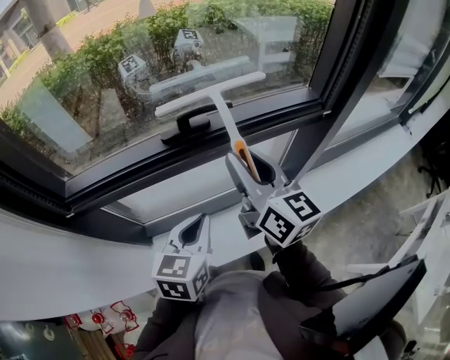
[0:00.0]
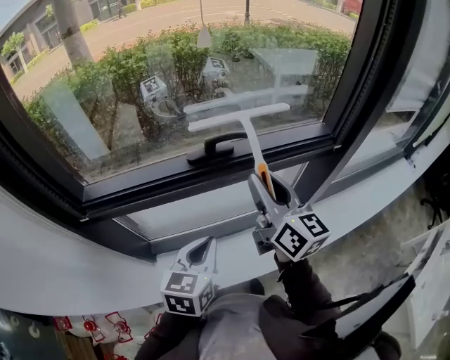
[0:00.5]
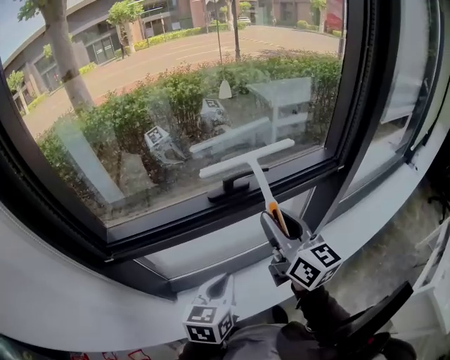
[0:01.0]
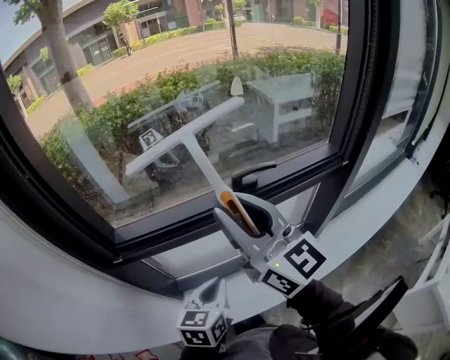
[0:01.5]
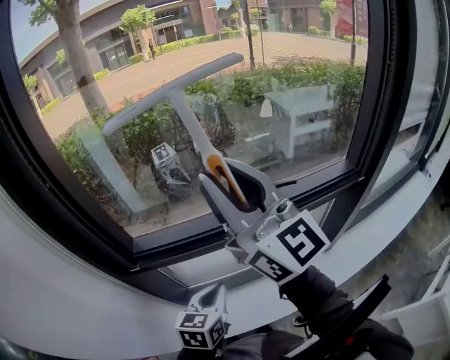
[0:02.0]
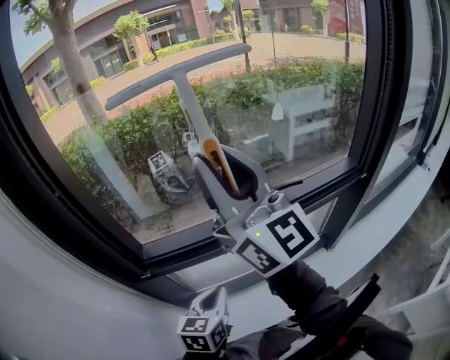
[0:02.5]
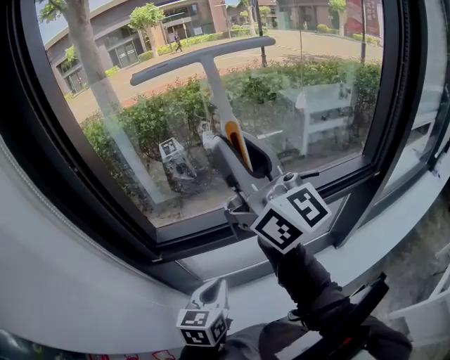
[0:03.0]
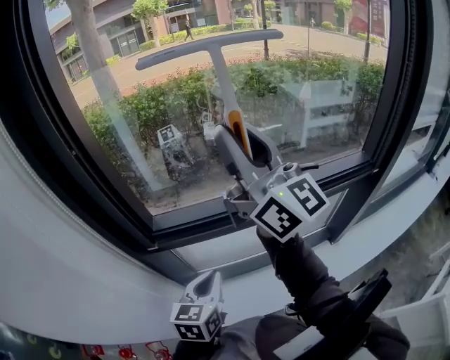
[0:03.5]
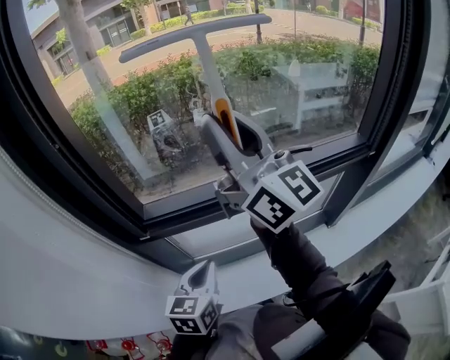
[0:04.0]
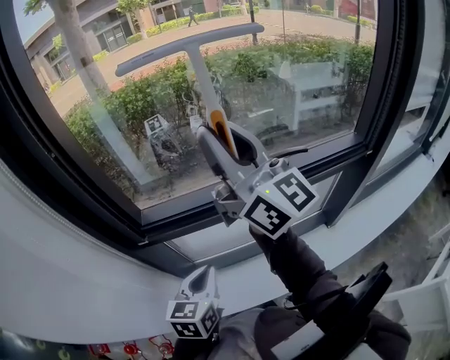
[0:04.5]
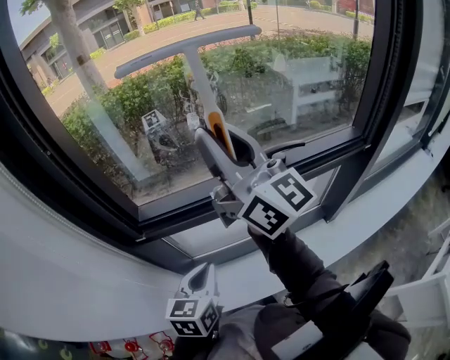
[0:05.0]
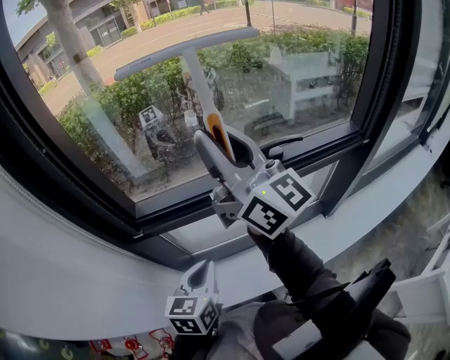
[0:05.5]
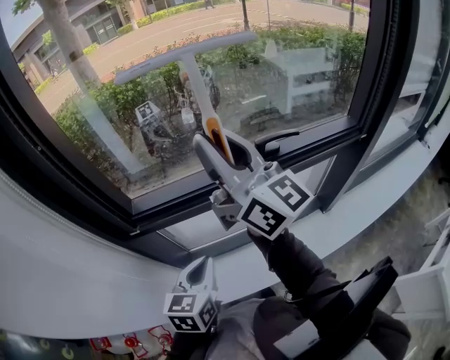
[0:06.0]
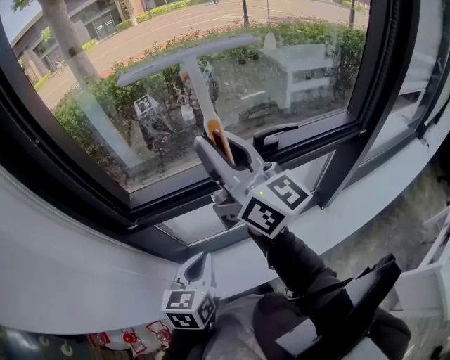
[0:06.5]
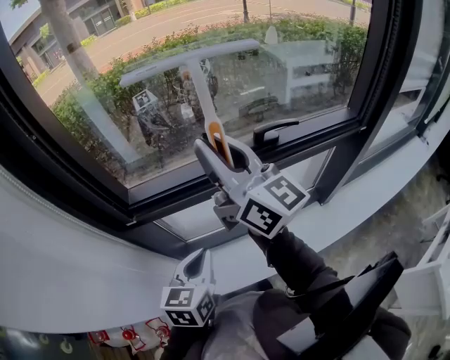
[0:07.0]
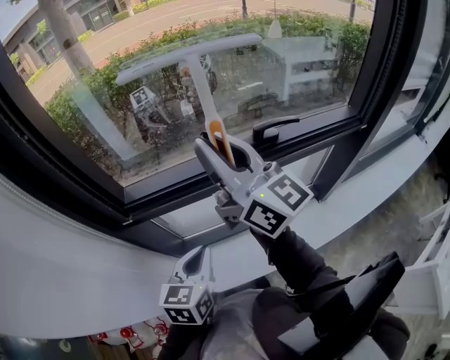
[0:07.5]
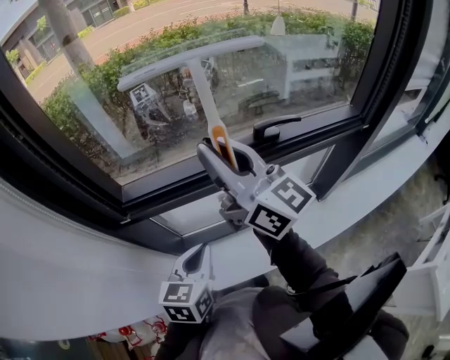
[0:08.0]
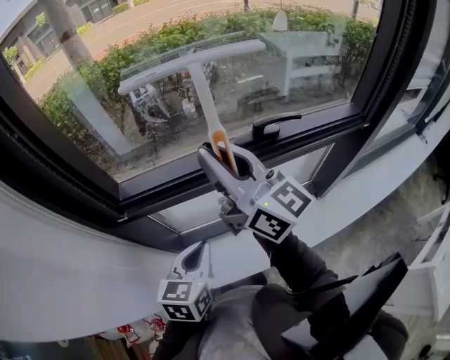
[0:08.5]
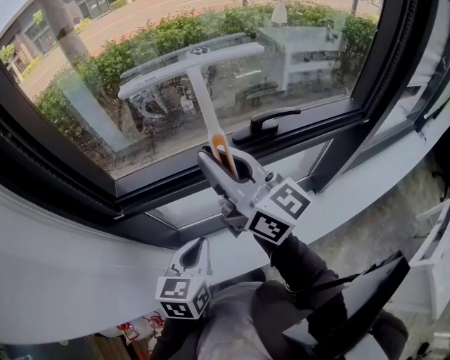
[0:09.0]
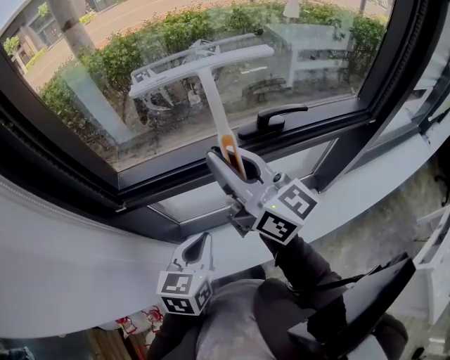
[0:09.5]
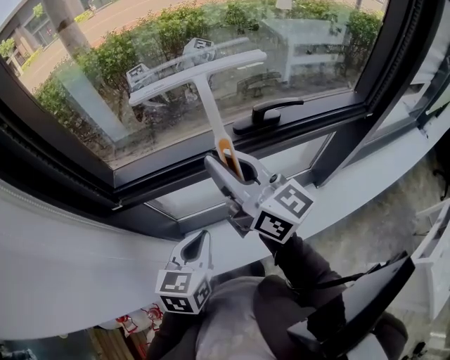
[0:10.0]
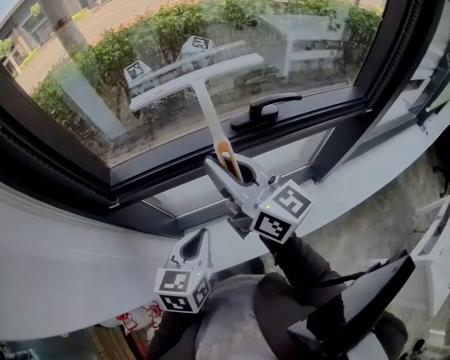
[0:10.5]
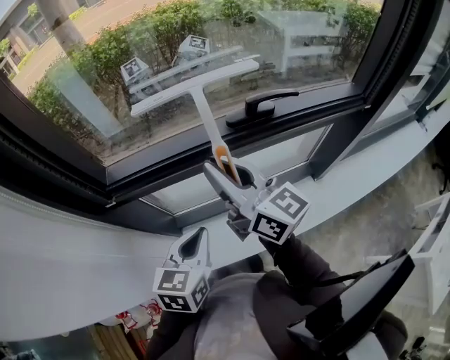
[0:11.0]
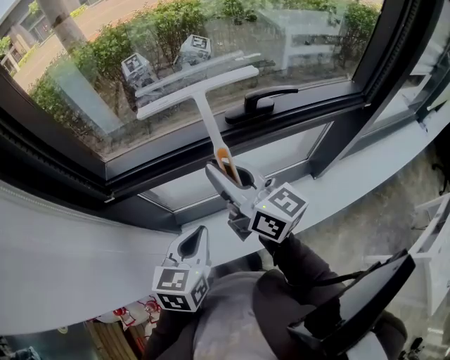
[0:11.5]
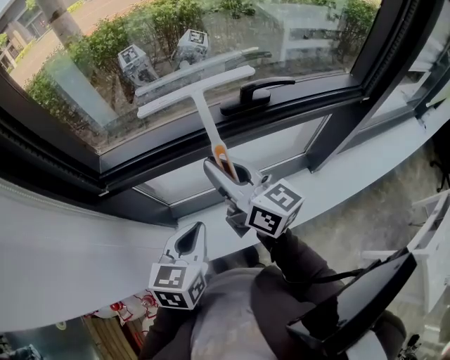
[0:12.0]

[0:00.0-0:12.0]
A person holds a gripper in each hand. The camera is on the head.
0:00.0 to 0:02.0: The right gripper moves upward and to the left, some 30 cm, and turns by some 30 degrees. The left gripper heads to the left, covering approximately 15 cm.
0:02.0 to 0:04.0: The left gripper goes some 5 cm to the left.
0:04.0 to 0:06.0: The right gripper travels downward by about 5 cm.
0:06.0 to 0:08.0: The right gripper is displaced downward by about 5 cm.
0:08.0 to 0:10.0: The right gripper is displaced downward by approximately 5 cm.
0:10.0 to 0:12.0: The right gripper shifts some 10 cm downward.

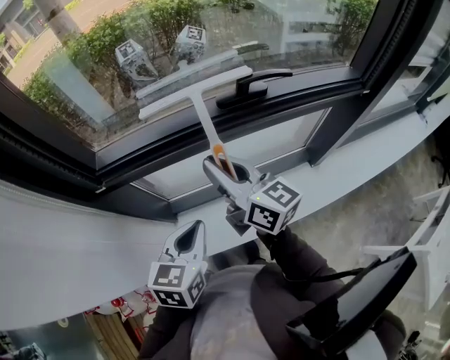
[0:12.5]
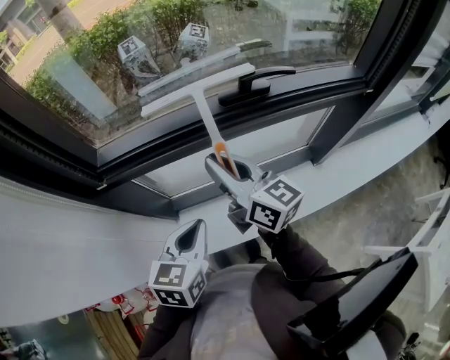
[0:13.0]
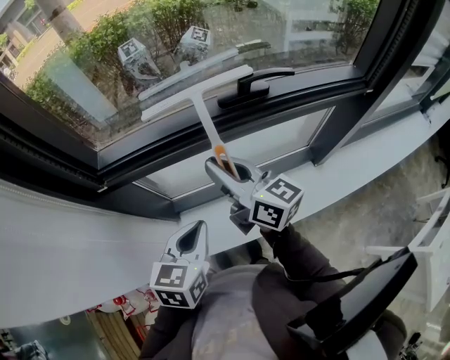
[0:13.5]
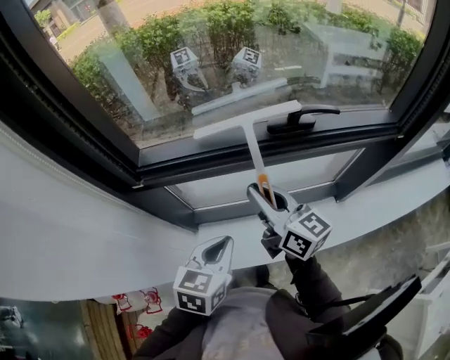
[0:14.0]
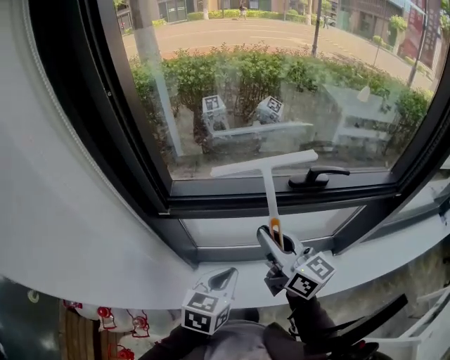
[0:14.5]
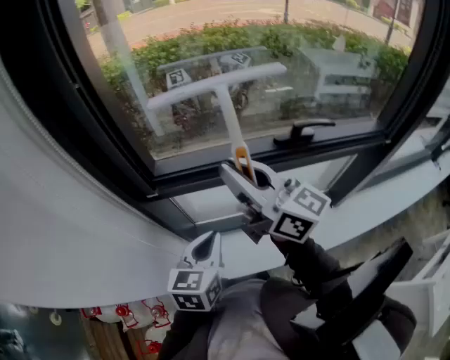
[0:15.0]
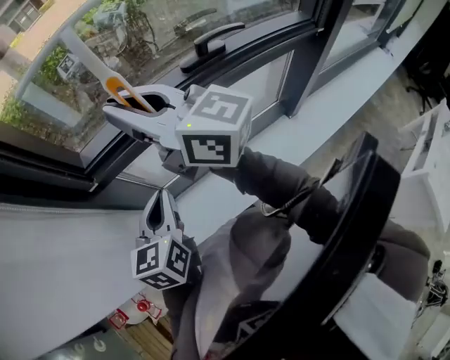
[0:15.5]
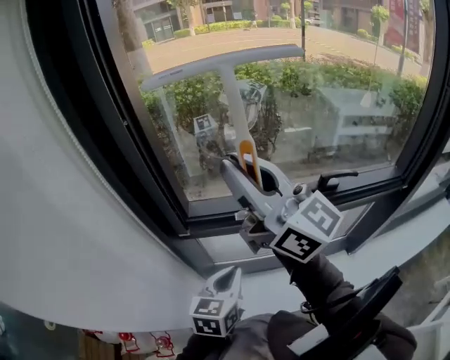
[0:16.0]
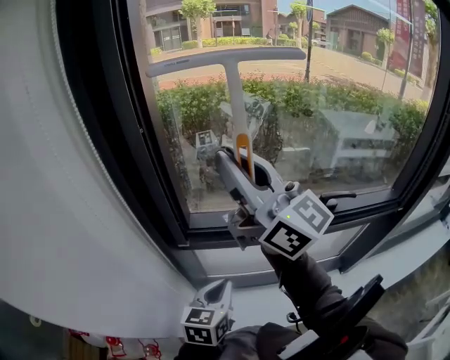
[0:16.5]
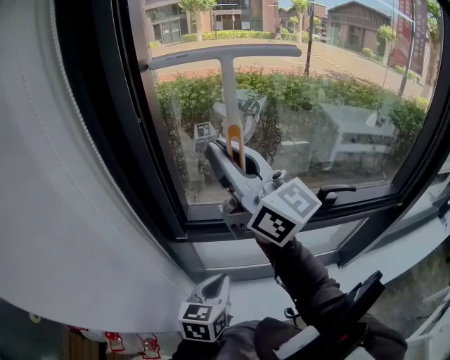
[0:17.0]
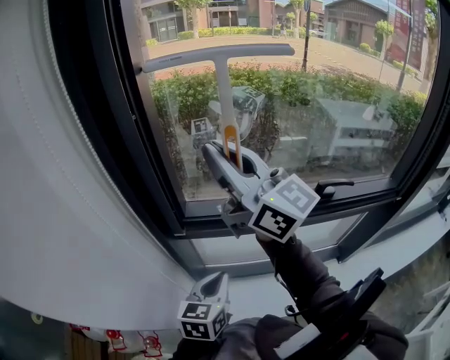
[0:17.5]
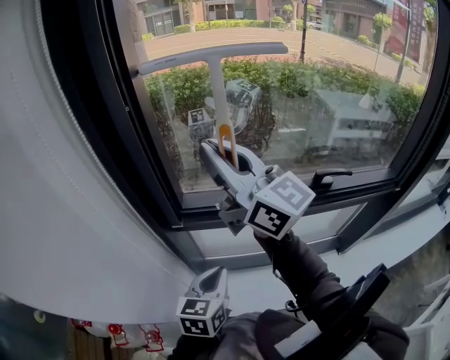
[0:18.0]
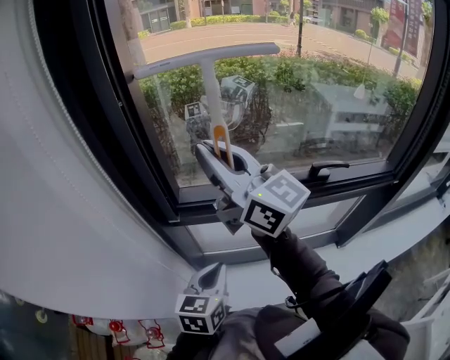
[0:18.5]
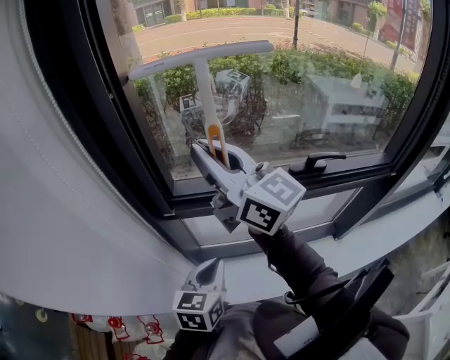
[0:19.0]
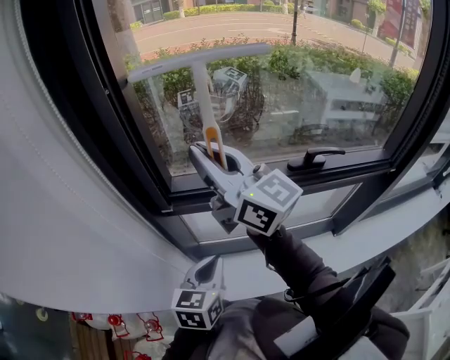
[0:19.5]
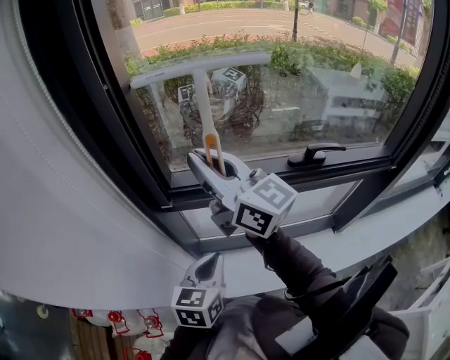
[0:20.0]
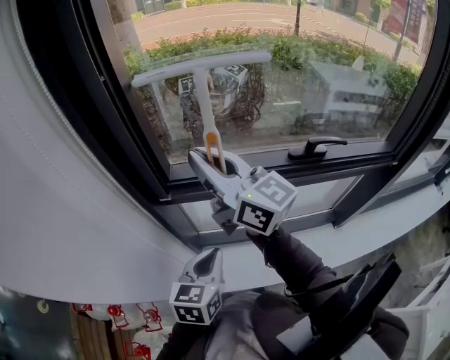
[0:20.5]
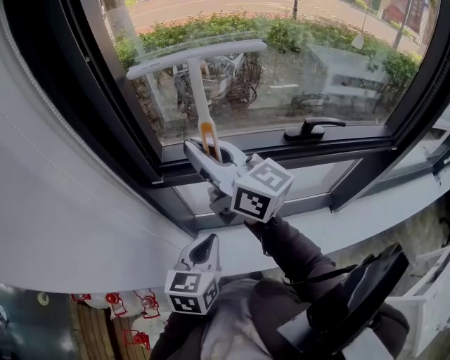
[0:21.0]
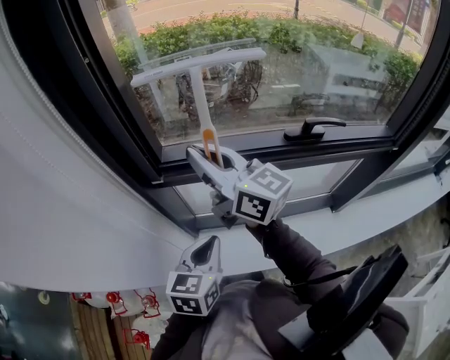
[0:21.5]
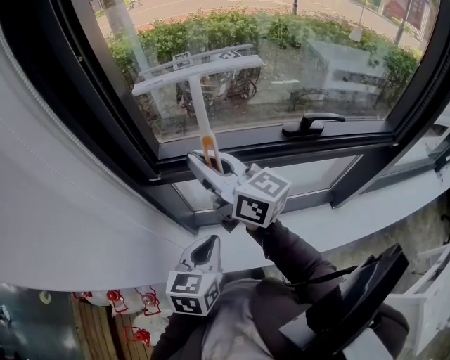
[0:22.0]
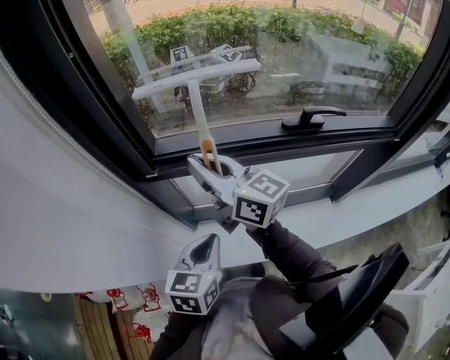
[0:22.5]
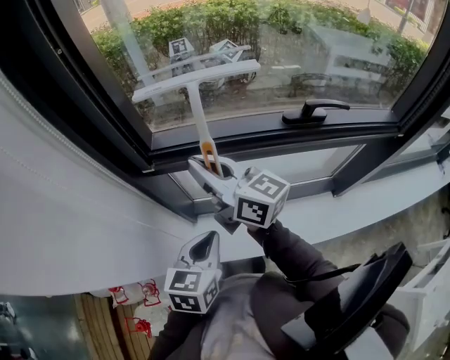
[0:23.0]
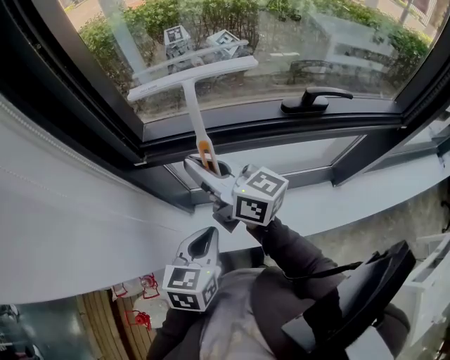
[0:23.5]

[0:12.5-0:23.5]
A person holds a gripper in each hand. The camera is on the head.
0:12.5 to 0:14.5: The grippers move only a little.
0:14.5 to 0:16.0: The right gripper heads upward and to the left, covering about 25 cm, and changes its angle by about 30 degrees, while the left gripper heads to the left, covering roughly 5 cm.
0:16.0 to 0:18.0: The grippers stay close to where they were, moving slightly.
0:18.0 to 0:20.0: The right gripper moves downward, about 10 cm.
0:20.0 to 0:21.5: The right gripper is displaced downward by about 5 cm.
0:21.5 to 0:23.5: The right gripper is displaced downward by about 10 cm.

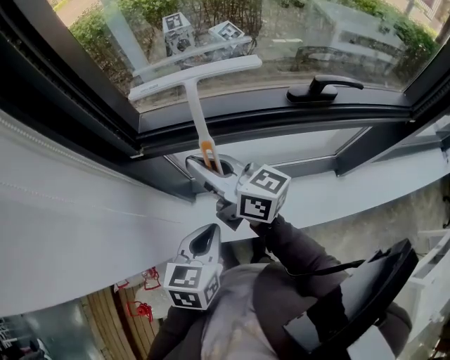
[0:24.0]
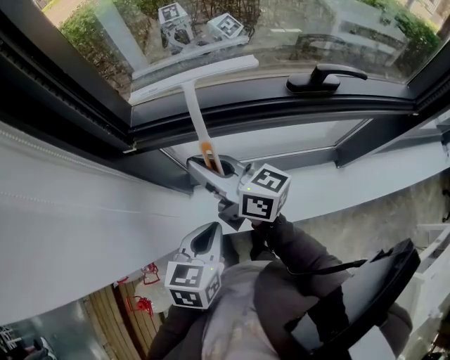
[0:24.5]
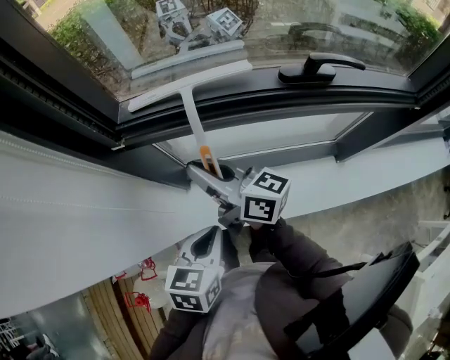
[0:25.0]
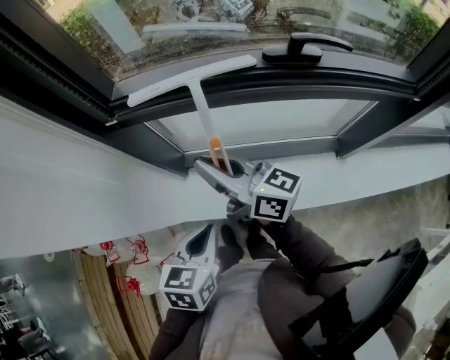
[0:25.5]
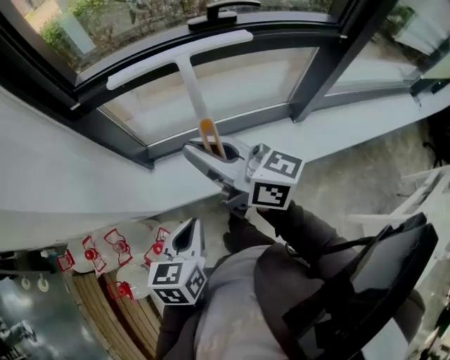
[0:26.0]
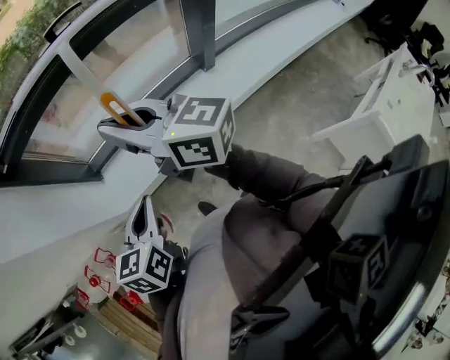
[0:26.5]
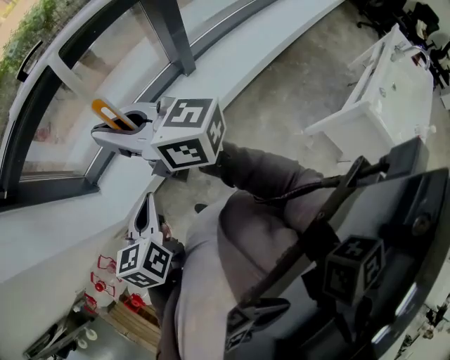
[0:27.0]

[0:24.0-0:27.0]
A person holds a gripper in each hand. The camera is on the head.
0:24.0 to 0:25.5: The right gripper heads backward and to the right, covering some 10 cm. The left gripper goes roughly 10 cm backward.
0:25.5 to 0:27.0: Both grippers move backward and to the right, roughly 35 cm. The left gripper turns by roughly 20 degrees; the right gripper changes its angle by approximately 30 degrees.

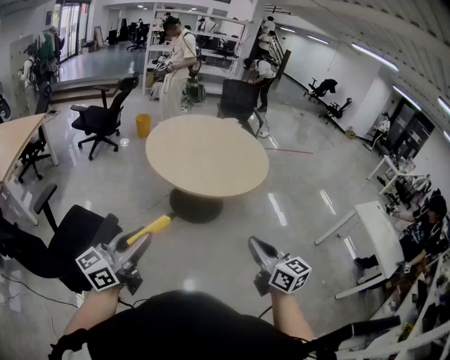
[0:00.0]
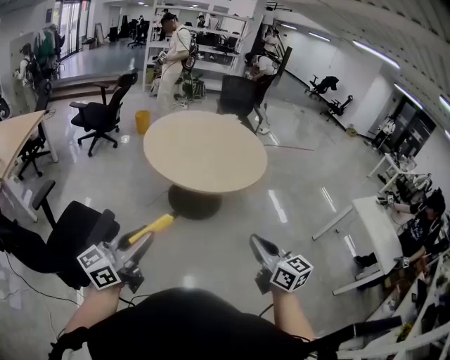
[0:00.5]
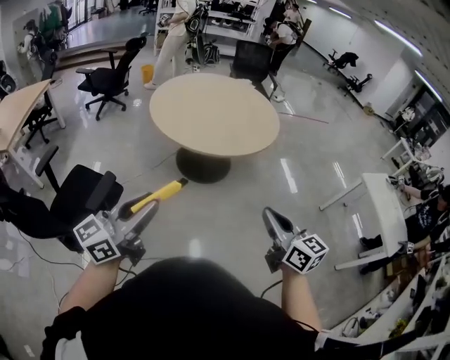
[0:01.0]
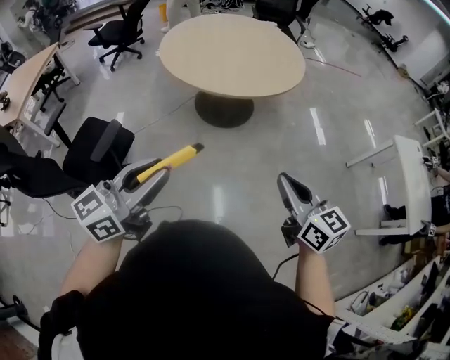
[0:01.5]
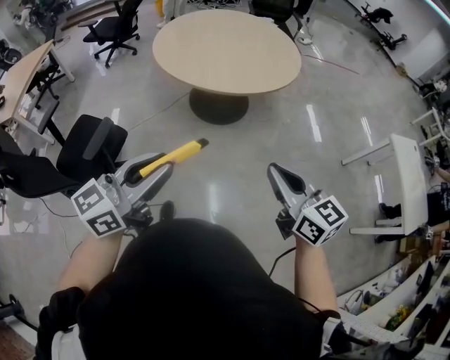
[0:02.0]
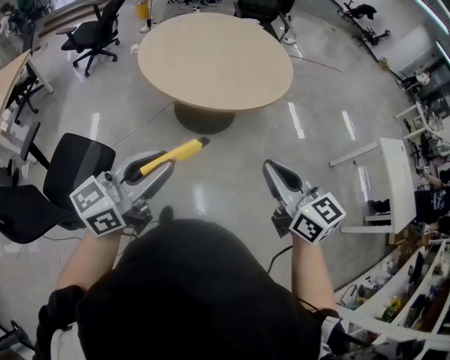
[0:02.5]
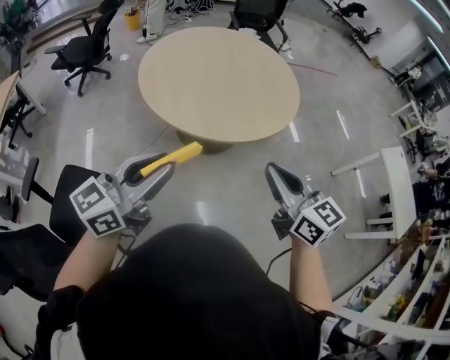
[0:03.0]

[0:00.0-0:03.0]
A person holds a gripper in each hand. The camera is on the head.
0:00.0 to 0:01.5: Both grippers travel together to the right, about 15 cm.
0:01.5 to 0:03.0: Both grippers travel together forward and to the left, roughly 30 cm.
